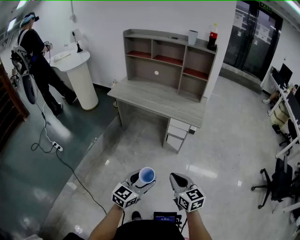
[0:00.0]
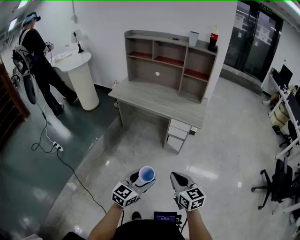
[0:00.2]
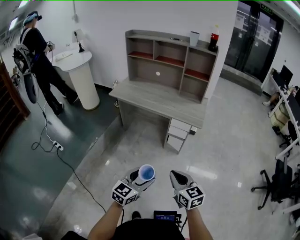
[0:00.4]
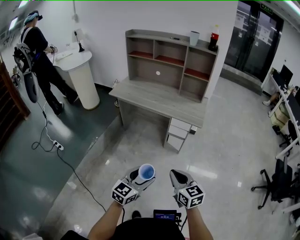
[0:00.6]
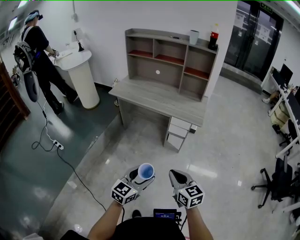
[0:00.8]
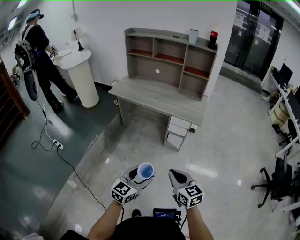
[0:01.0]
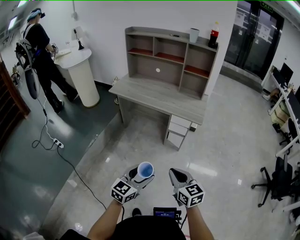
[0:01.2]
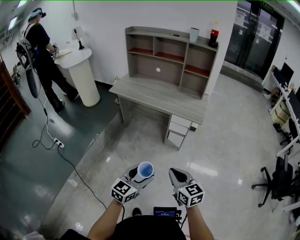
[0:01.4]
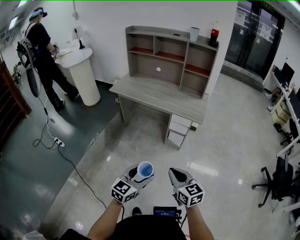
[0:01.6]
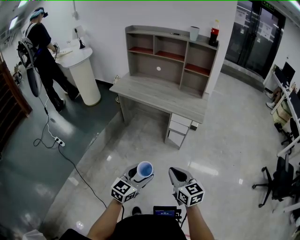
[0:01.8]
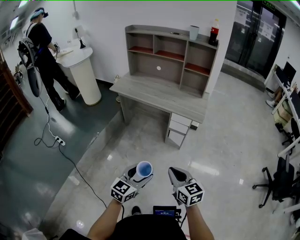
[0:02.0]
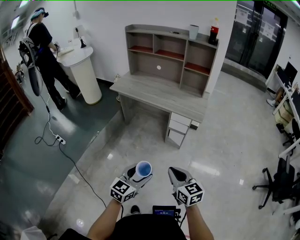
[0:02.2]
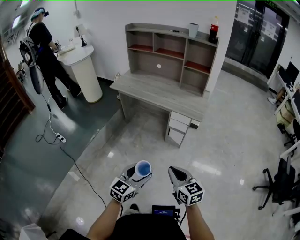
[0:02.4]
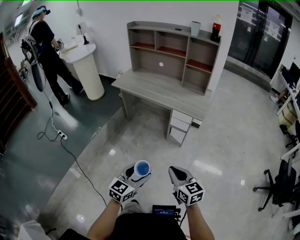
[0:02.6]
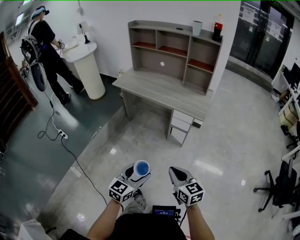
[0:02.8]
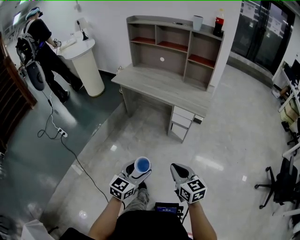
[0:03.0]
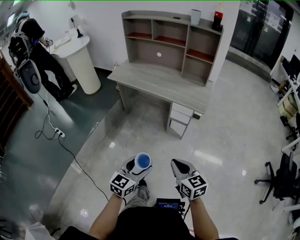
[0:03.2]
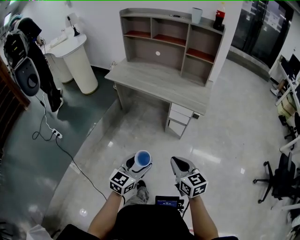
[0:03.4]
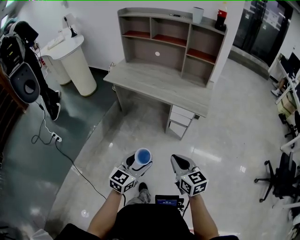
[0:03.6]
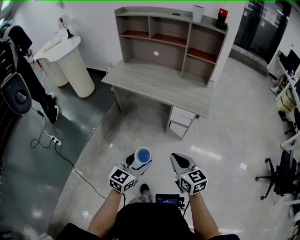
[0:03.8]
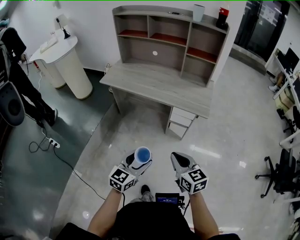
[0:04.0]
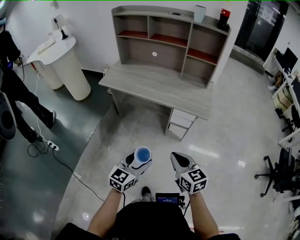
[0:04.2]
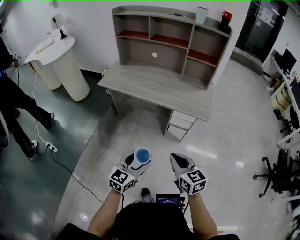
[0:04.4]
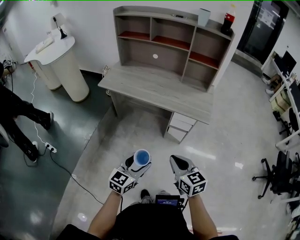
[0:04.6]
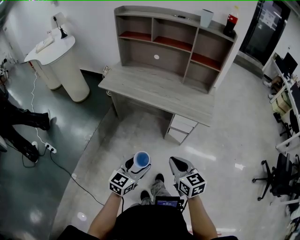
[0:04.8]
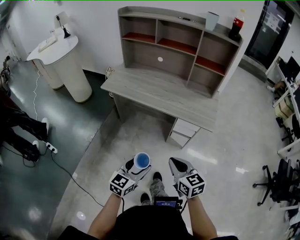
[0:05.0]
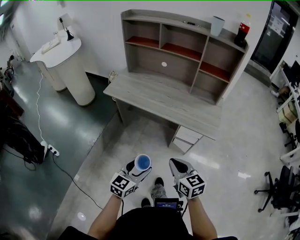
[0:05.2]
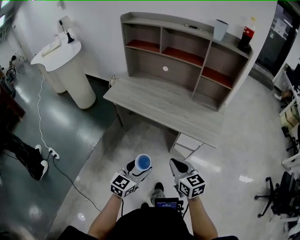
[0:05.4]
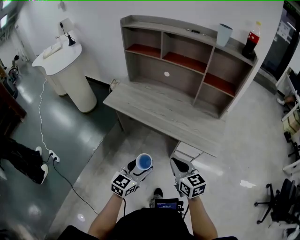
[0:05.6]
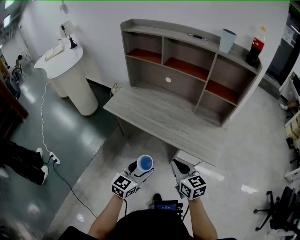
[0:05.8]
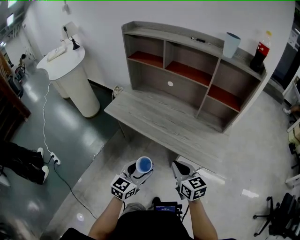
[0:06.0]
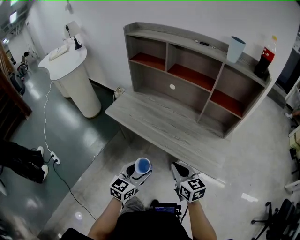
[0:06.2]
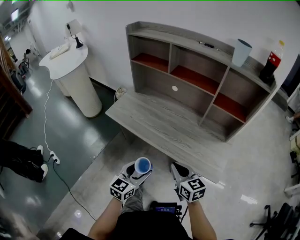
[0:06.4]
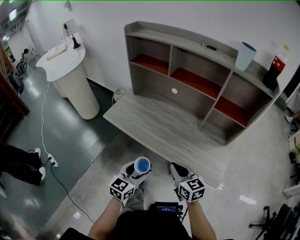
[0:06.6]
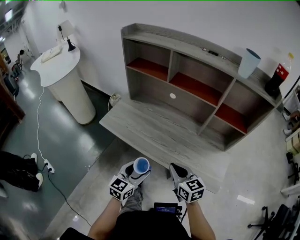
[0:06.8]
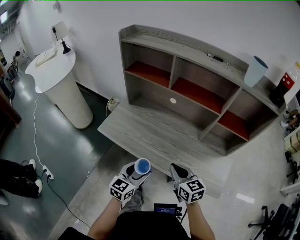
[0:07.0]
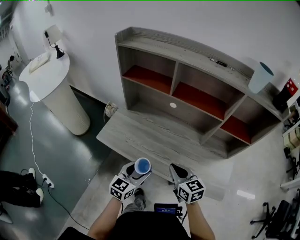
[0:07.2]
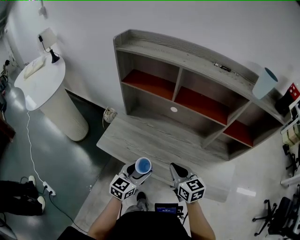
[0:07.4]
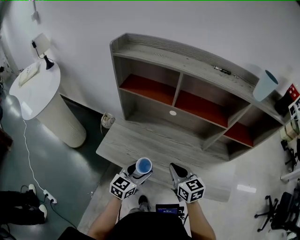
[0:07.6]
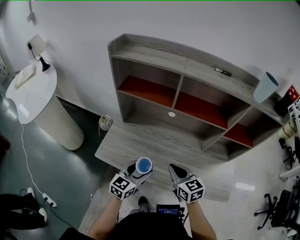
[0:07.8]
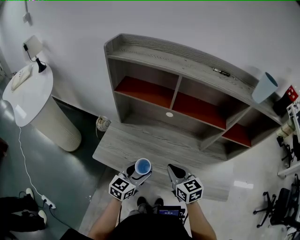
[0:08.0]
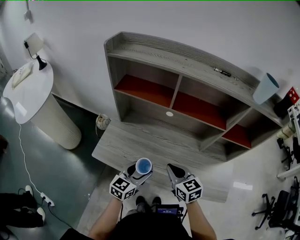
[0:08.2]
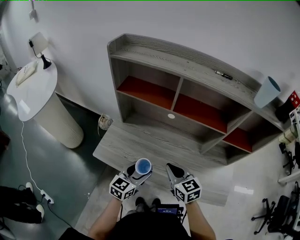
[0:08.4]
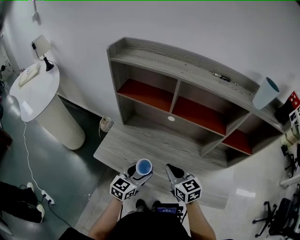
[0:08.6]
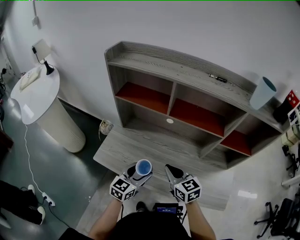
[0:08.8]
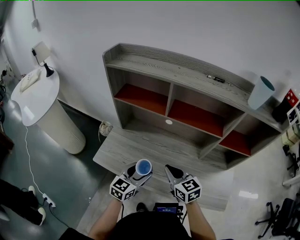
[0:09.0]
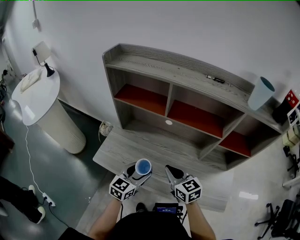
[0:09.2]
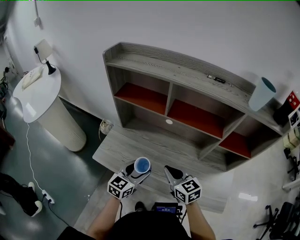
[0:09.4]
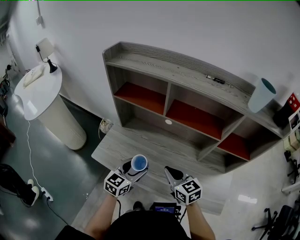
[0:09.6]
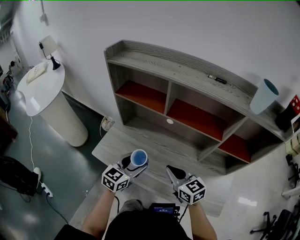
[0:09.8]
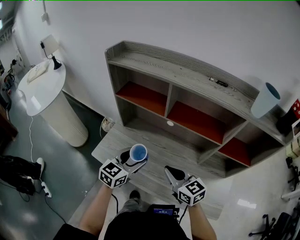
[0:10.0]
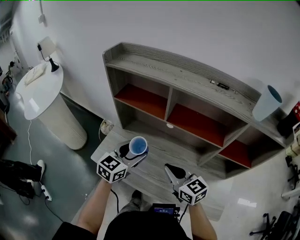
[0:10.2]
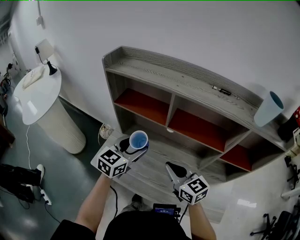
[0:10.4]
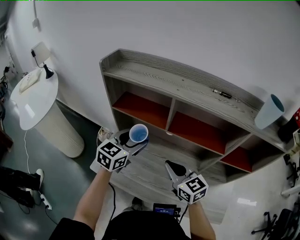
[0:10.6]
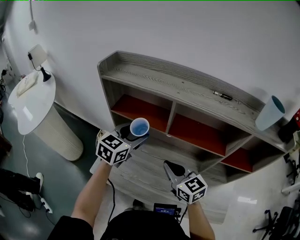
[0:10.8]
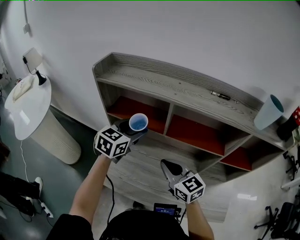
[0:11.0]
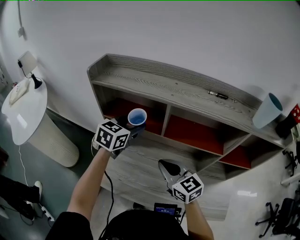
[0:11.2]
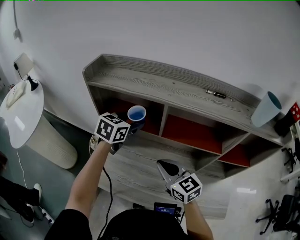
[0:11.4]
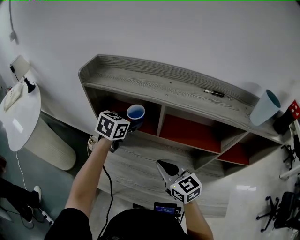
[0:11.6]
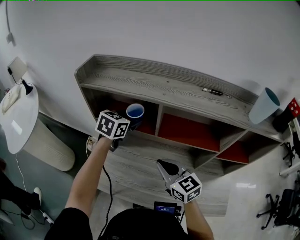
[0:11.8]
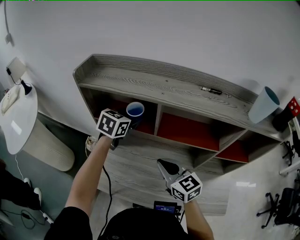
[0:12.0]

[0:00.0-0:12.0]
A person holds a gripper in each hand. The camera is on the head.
0:00.0 to 0:01.6: There are only small adjustments of the grippers.
0:01.6 to 0:03.0: The right gripper shifts by roughly 5 cm.
0:03.0 to 0:04.4: Both grippers move forward and to the left, some 20 cm.
0:04.4 to 0:06.0: Both grippers move forward, roughly 25 cm.
0:06.0 to 0:07.6: The right gripper heads forward and to the left, covering some 30 cm. The left gripper shifts about 30 cm forward.
0:07.6 to 0:09.0: The left gripper ends up about 5 cm from where it was.
0:09.0 to 0:10.4: The right gripper heads upward and forward, covering some 10 cm. Meanwhile the left gripper is displaced forward and upward by some 20 cm.
0:10.4 to 0:12.0: The left gripper heads forward, covering some 20 cm. The right gripper goes about 5 cm forward.

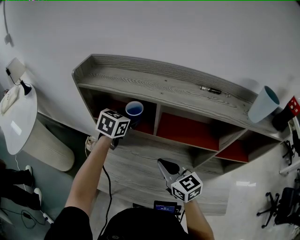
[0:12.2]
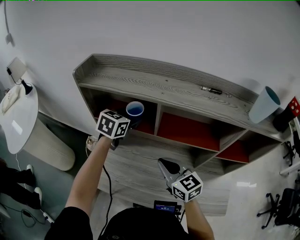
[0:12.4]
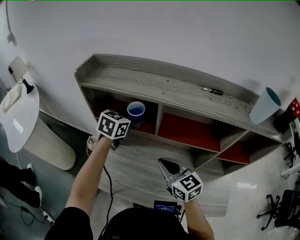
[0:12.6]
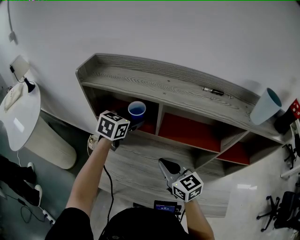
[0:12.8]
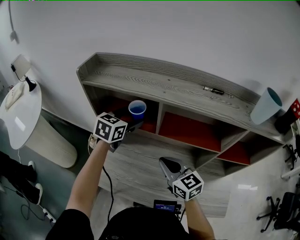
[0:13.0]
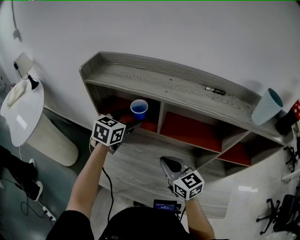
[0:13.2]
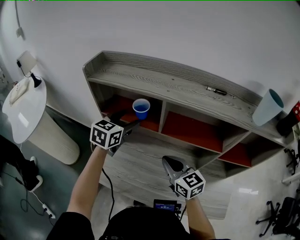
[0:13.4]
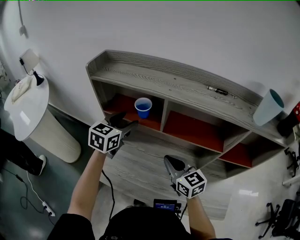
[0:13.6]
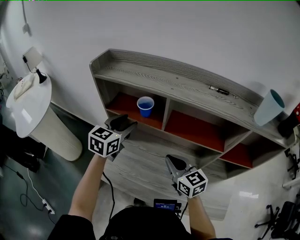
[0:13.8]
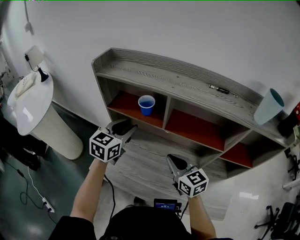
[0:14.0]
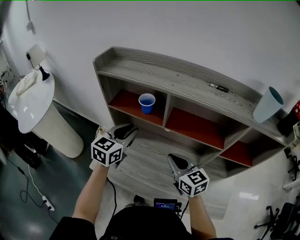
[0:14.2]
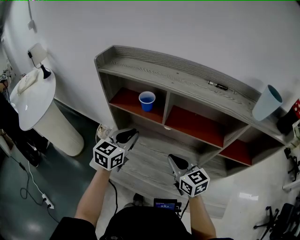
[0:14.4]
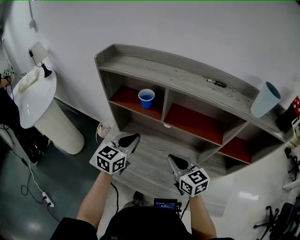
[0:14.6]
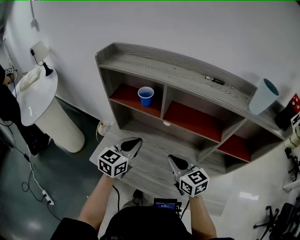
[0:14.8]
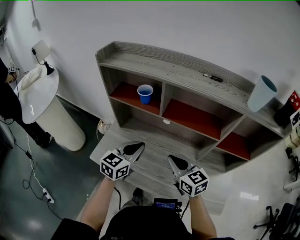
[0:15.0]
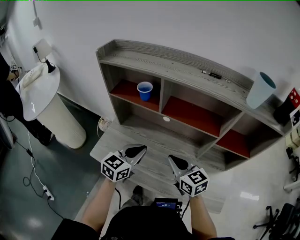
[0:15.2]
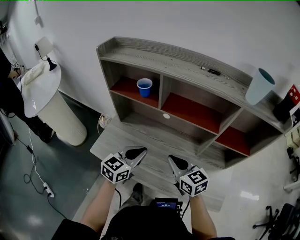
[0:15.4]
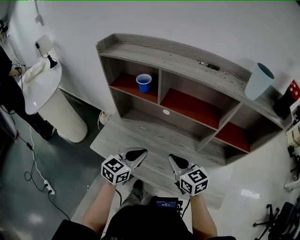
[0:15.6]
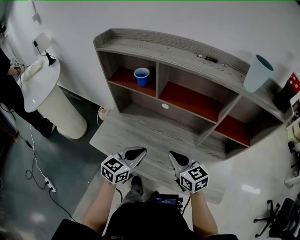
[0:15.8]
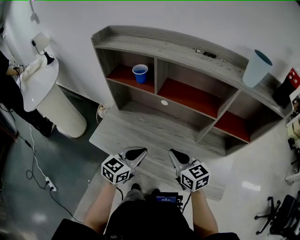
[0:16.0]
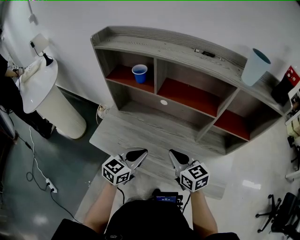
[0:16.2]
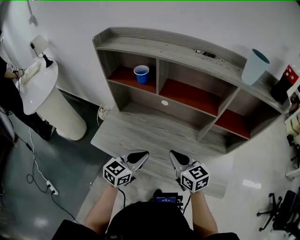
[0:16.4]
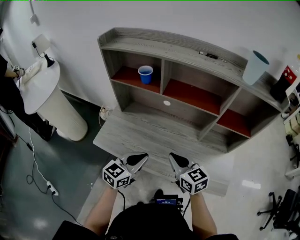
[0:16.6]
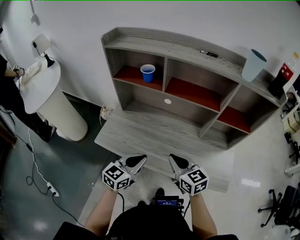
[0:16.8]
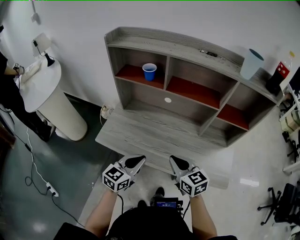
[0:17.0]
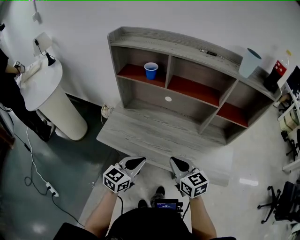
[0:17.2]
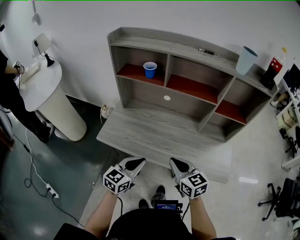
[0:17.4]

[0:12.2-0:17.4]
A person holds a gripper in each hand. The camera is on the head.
0:12.2 to 0:14.0: The left gripper moves backward and to the left, approximately 10 cm, and closes.
0:14.0 to 0:15.6: The left gripper moves backward, to the right and downward, some 25 cm, and closes; the right gripper moves backward, approximately 10 cm.
0:15.6 to 0:17.4: Both grippers move backward, roughly 15 cm.

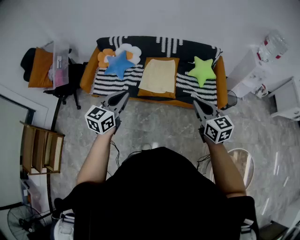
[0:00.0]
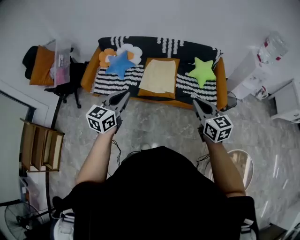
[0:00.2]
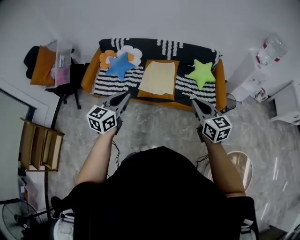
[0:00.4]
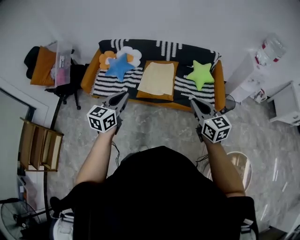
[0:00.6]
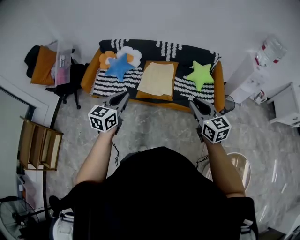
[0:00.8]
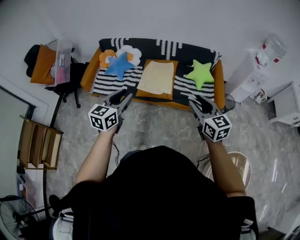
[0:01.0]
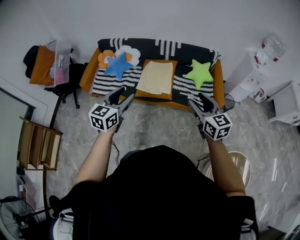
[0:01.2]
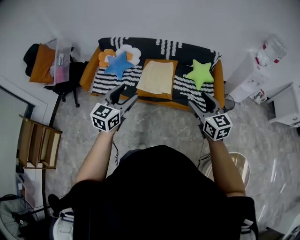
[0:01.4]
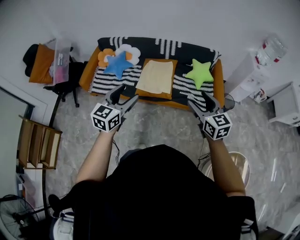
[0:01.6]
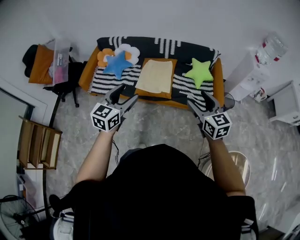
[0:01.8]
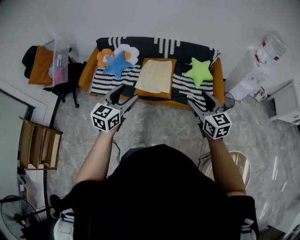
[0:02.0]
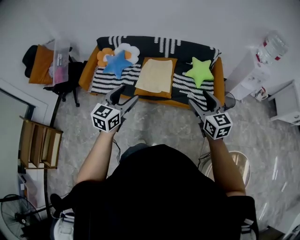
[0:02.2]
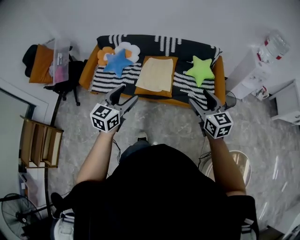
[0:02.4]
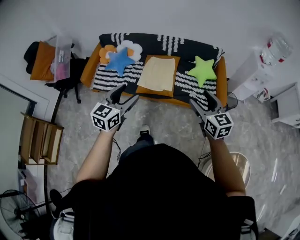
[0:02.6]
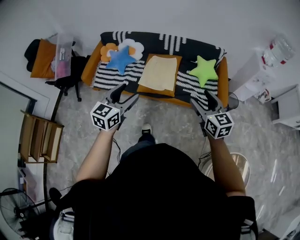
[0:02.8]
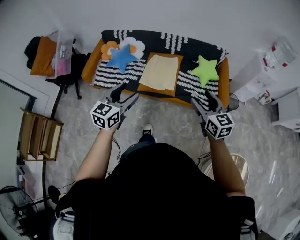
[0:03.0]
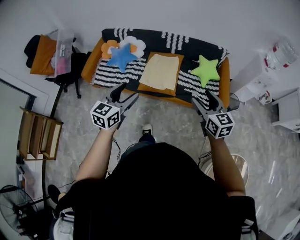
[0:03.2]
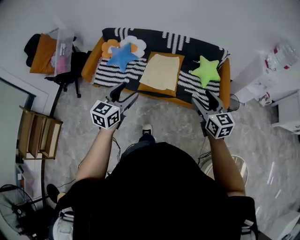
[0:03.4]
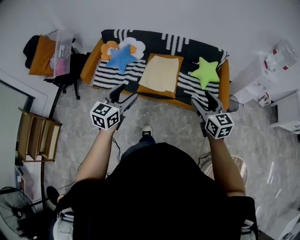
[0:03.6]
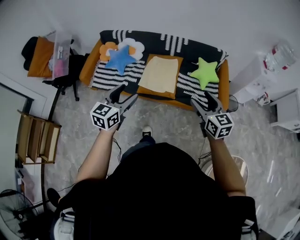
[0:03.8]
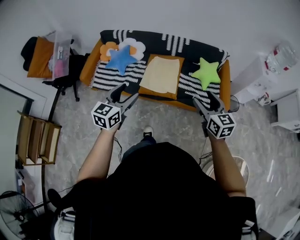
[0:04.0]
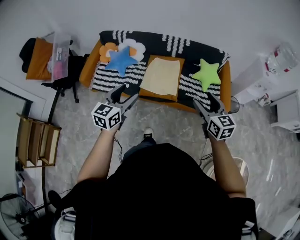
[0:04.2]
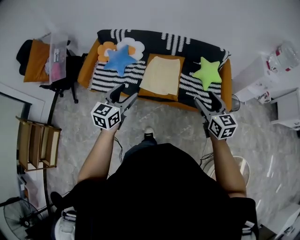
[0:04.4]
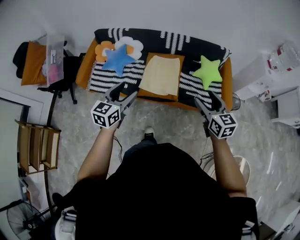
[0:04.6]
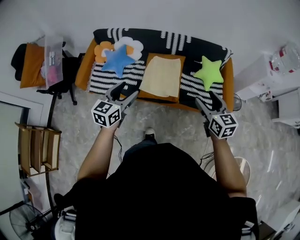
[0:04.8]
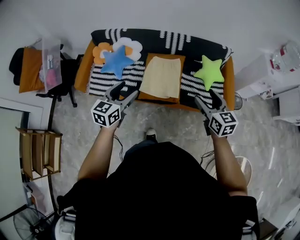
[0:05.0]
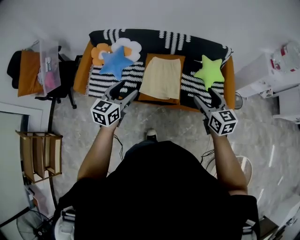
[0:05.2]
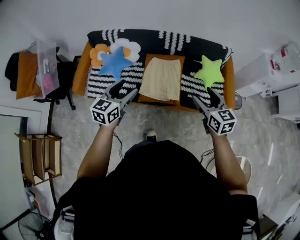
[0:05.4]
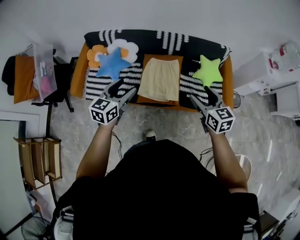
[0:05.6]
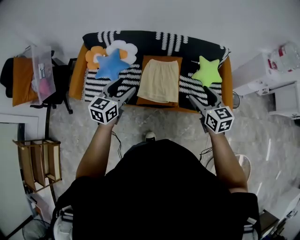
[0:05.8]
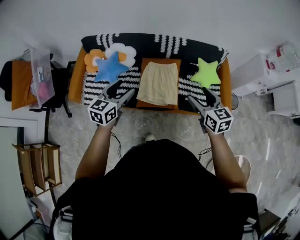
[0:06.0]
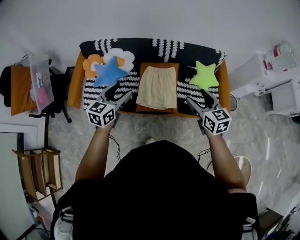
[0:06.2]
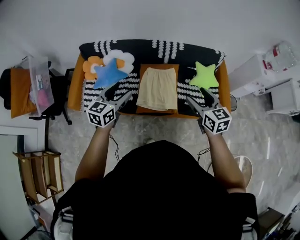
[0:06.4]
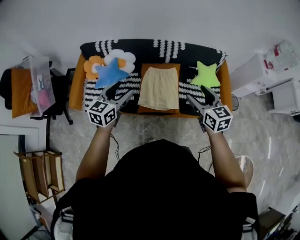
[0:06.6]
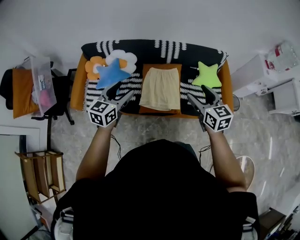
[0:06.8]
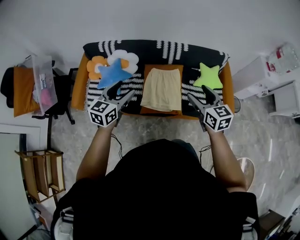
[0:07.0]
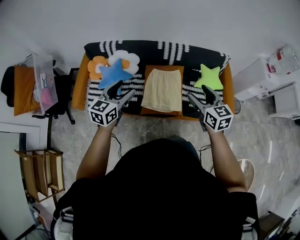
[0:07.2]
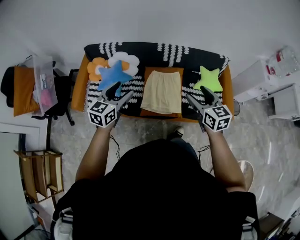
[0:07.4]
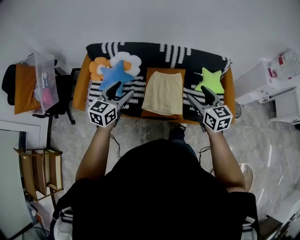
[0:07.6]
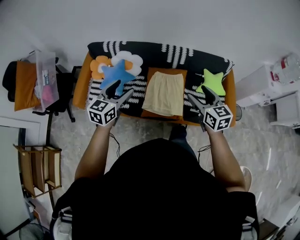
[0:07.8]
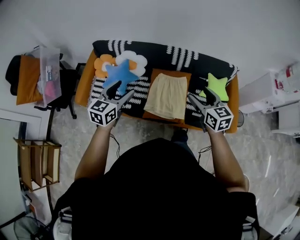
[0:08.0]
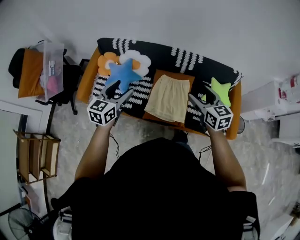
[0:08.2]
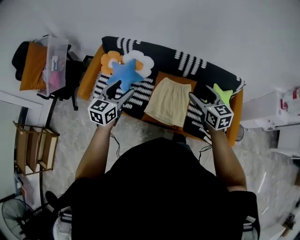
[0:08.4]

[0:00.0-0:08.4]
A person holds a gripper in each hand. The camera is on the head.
0:00.0 to 0:01.4: The right gripper opens, while the left gripper shifts approximately 5 cm to the right, and opens up.
0:01.4 to 0:02.8: There are only small adjustments of the grippers.
0:02.8 to 0:04.2: The left gripper is displaced forward and to the left by about 10 cm. Meanwhile the right gripper moves forward, some 5 cm.
0:04.2 to 0:05.6: The two grippers go about 20 cm forward.
0:05.6 to 0:07.0: Both grippers move to the left, about 5 cm.
0:07.0 to 0:08.4: The right gripper is displaced forward by roughly 15 cm. The left gripper moves forward, approximately 5 cm.
